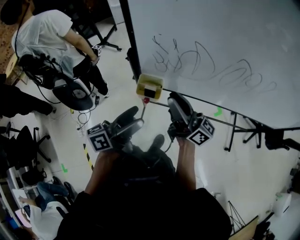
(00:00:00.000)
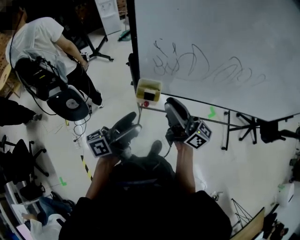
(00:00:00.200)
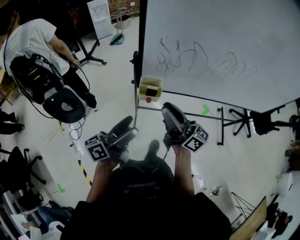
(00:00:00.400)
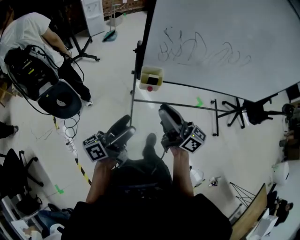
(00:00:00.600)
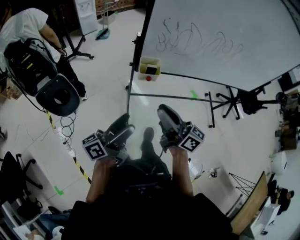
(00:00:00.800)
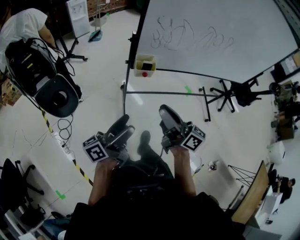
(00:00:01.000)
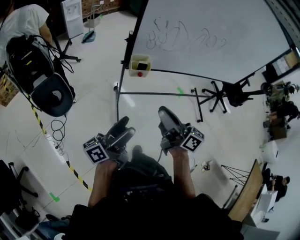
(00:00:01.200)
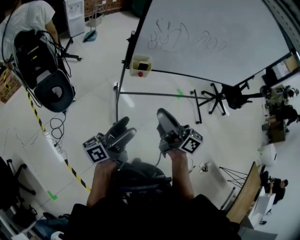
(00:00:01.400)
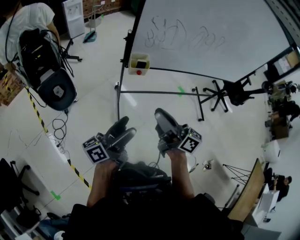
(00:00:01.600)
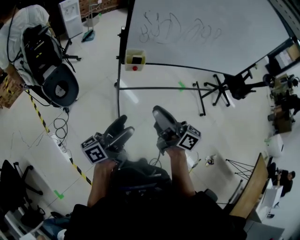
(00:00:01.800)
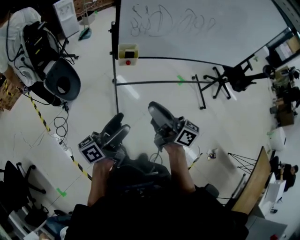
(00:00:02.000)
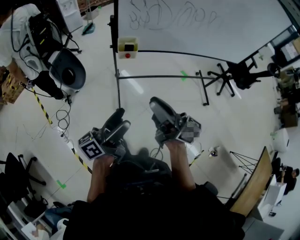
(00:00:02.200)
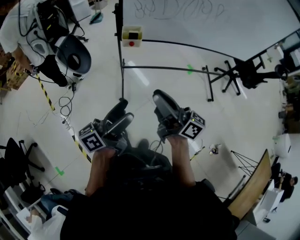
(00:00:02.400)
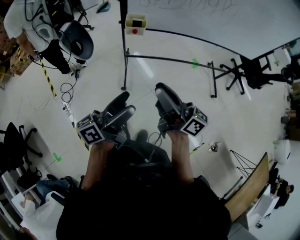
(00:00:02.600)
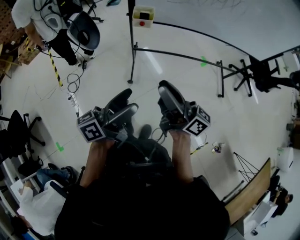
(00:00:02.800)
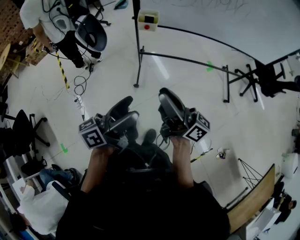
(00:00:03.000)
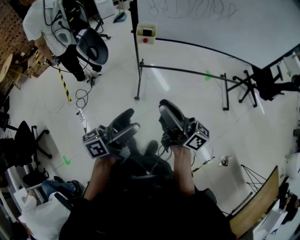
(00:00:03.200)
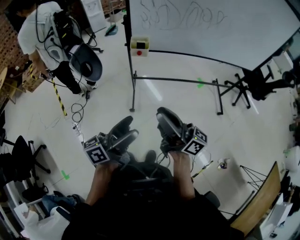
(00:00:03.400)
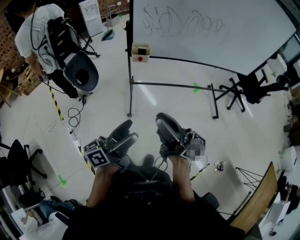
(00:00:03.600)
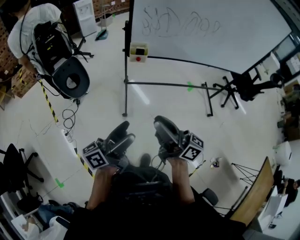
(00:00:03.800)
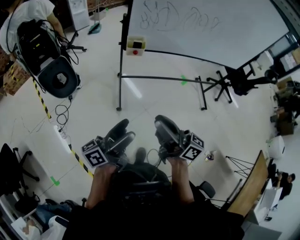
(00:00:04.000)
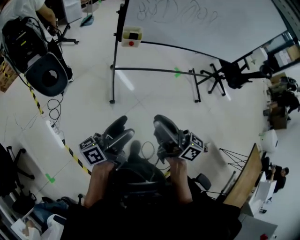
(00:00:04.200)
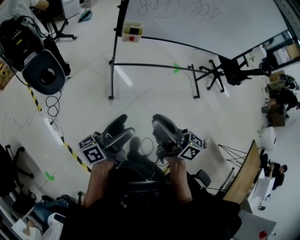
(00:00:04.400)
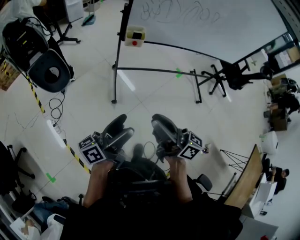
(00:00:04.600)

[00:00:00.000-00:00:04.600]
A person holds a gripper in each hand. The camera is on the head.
00:00:00.000 to 00:00:01.600: The left gripper moves backward and to the left, about 25 cm. The right gripper is displaced backward by some 30 cm.
00:00:01.600 to 00:00:03.000: The grippers both shift backward and to the right by approximately 15 cm.
00:00:03.000 to 00:00:04.600: The left gripper is displaced to the left by roughly 10 cm, while the right gripper moves to the left and backward, about 10 cm.

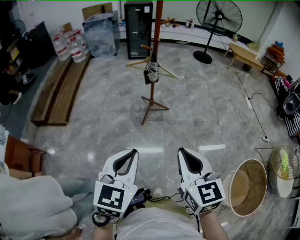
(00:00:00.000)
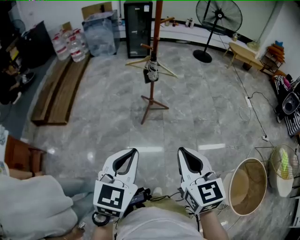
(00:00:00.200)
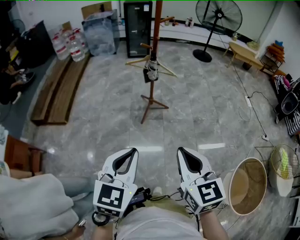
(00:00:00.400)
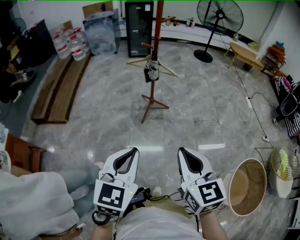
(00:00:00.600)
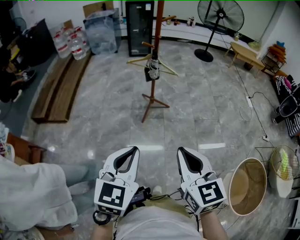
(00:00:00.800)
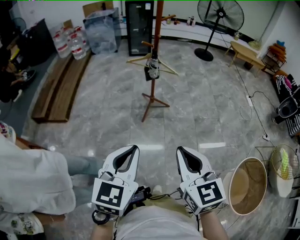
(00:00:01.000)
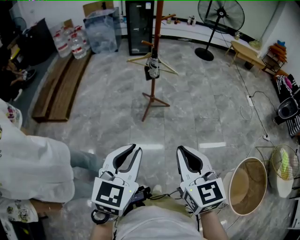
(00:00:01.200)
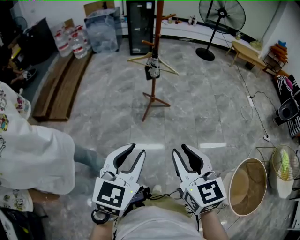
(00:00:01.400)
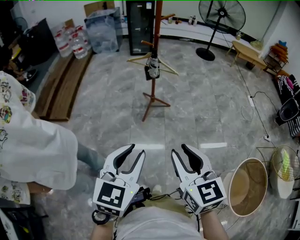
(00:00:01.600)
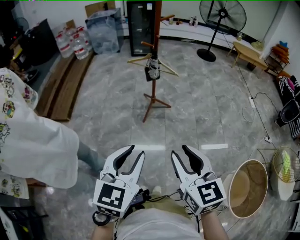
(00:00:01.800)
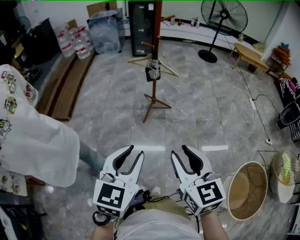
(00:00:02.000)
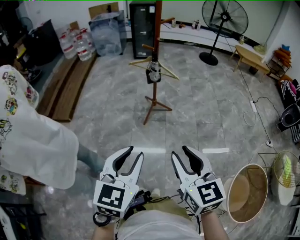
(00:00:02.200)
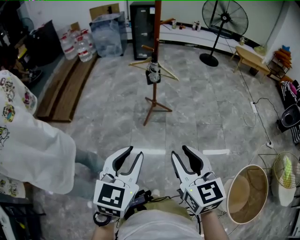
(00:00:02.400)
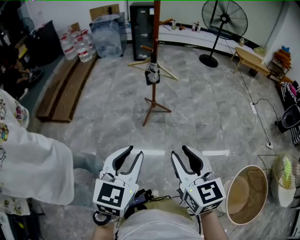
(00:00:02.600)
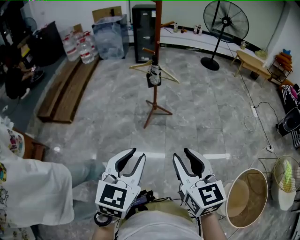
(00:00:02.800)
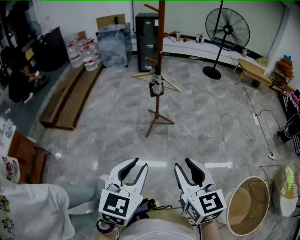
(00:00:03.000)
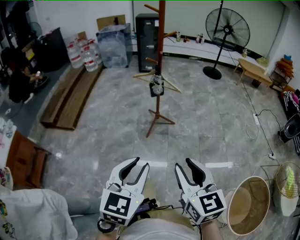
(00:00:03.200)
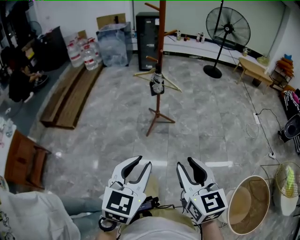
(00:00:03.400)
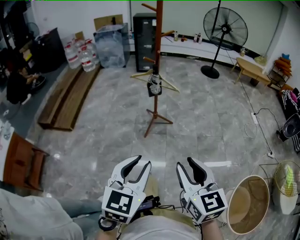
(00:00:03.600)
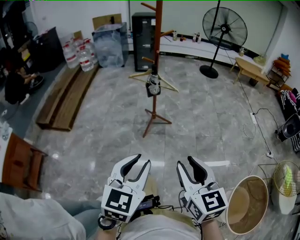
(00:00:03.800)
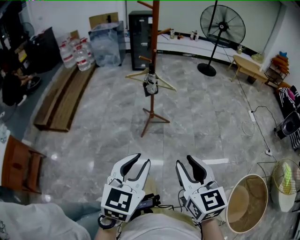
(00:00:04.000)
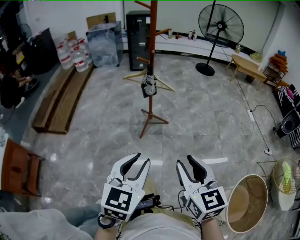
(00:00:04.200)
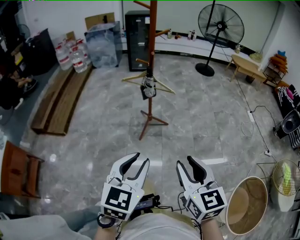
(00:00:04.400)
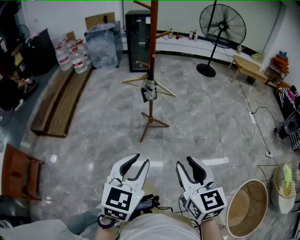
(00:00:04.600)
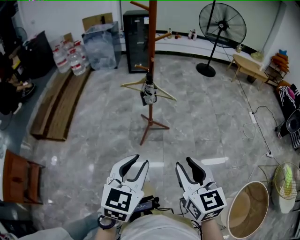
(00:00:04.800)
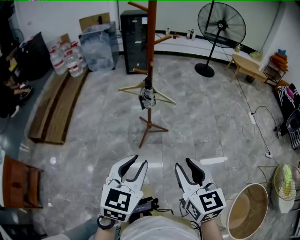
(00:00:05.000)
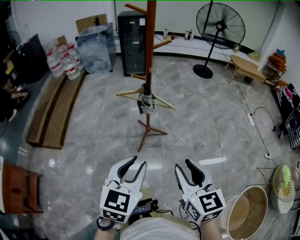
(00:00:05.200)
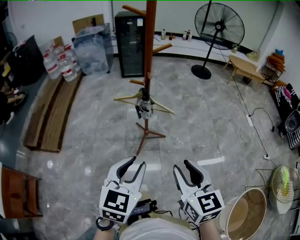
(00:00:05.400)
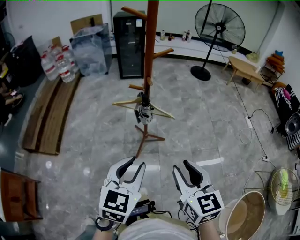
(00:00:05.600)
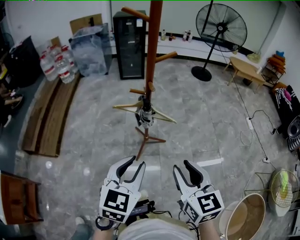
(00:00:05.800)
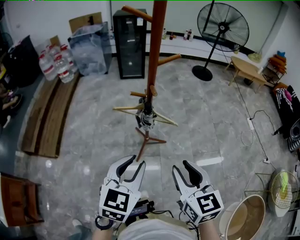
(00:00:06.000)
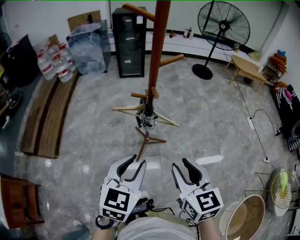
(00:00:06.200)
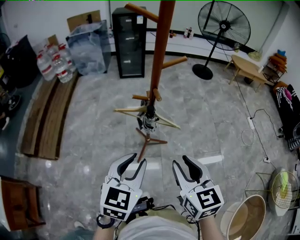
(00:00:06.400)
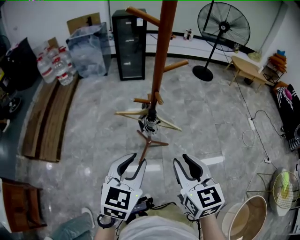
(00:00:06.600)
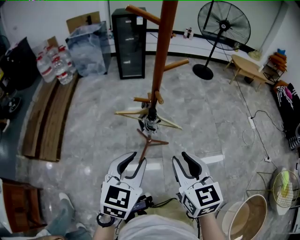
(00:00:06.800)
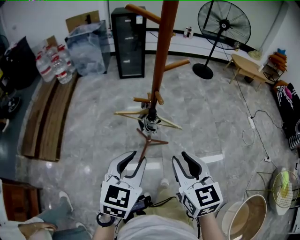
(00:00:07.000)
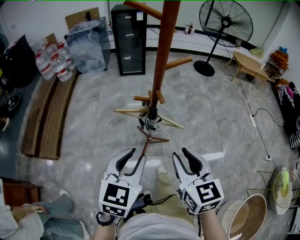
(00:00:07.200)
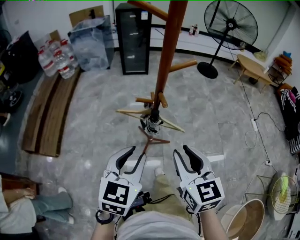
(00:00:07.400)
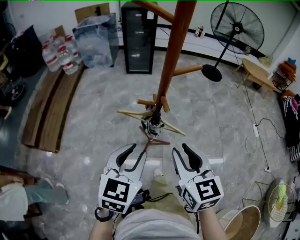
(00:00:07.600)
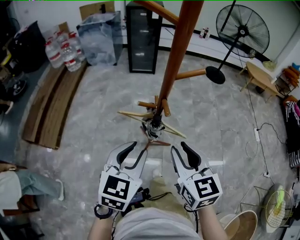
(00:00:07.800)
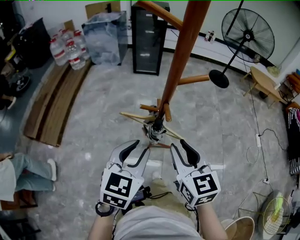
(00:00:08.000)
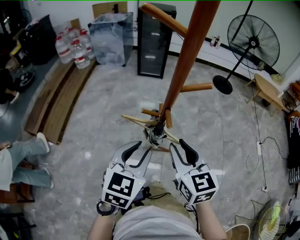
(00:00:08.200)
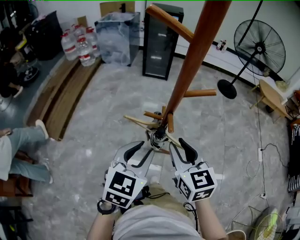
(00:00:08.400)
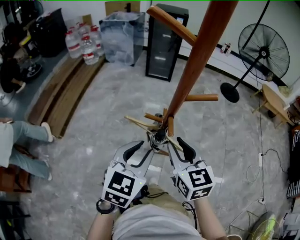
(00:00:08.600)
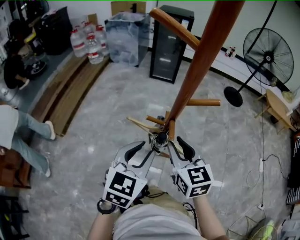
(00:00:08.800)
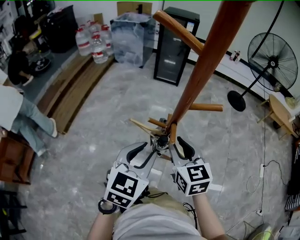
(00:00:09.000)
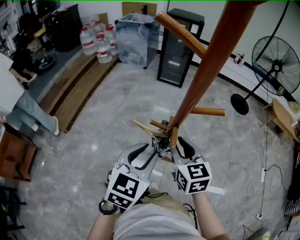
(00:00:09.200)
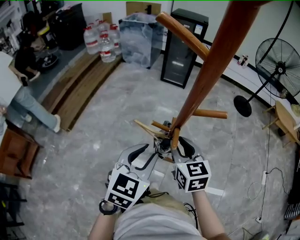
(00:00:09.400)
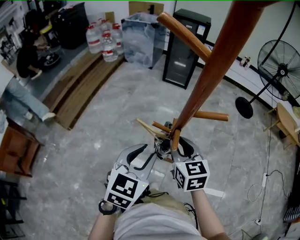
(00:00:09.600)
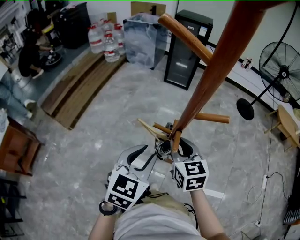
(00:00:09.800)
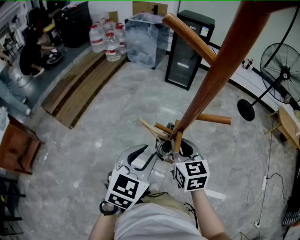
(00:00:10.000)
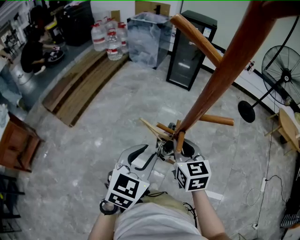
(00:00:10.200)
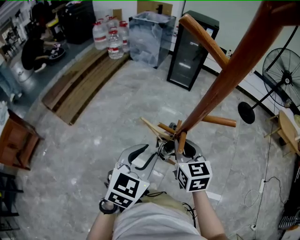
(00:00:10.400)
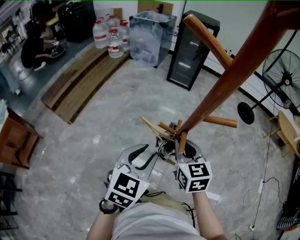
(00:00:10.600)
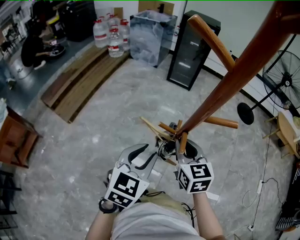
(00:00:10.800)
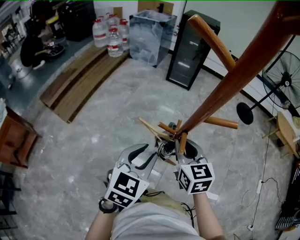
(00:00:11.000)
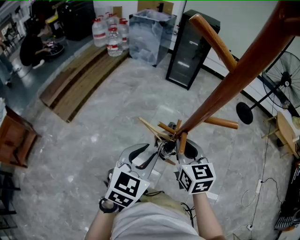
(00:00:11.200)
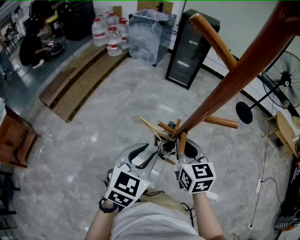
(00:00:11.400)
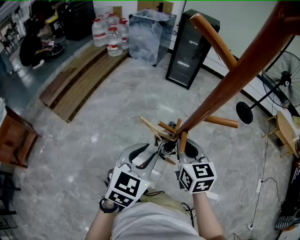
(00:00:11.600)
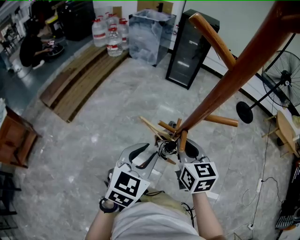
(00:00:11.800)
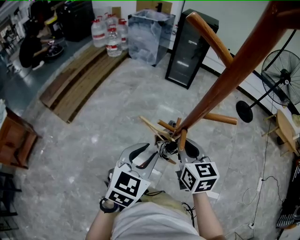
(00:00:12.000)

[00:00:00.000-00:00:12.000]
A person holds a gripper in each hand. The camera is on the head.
00:00:00.000 to 00:00:01.600: The left gripper opens its fingers. Meanwhile the right gripper opens up.
00:00:01.600 to 00:00:03.000: The grippers make only small movements.
00:00:03.000 to 00:00:04.400: The two grippers go roughly 5 cm forward.
00:00:04.400 to 00:00:06.000: The two grippers go some 25 cm forward.
00:00:06.000 to 00:00:07.600: The grippers both shift forward by approximately 10 cm.
00:00:07.600 to 00:00:09.000: The right gripper travels forward by some 15 cm; the left gripper heads forward, covering some 10 cm.
00:00:09.000 to 00:00:12.000: The grippers make only small movements.

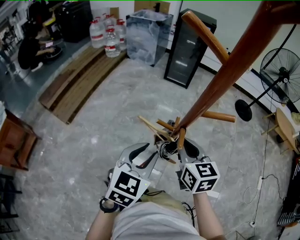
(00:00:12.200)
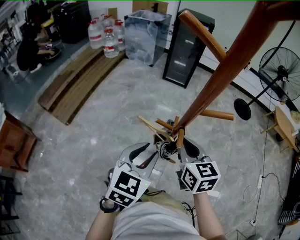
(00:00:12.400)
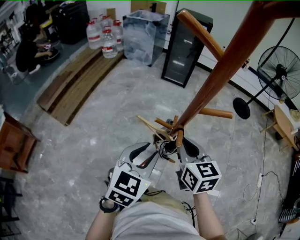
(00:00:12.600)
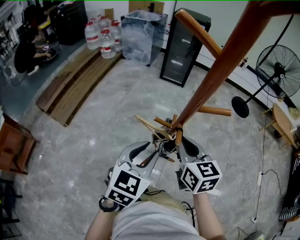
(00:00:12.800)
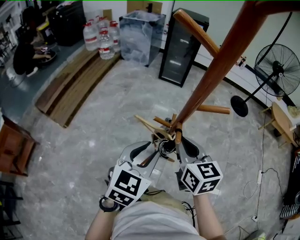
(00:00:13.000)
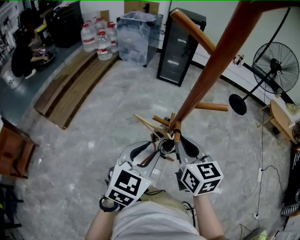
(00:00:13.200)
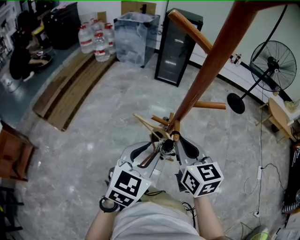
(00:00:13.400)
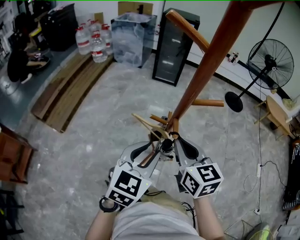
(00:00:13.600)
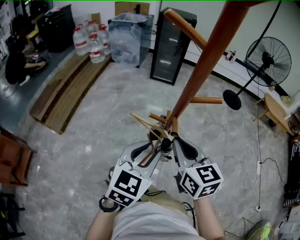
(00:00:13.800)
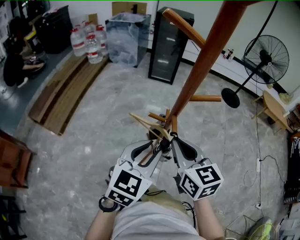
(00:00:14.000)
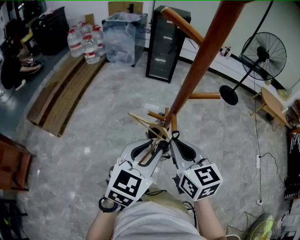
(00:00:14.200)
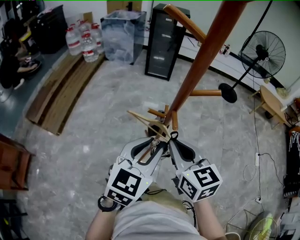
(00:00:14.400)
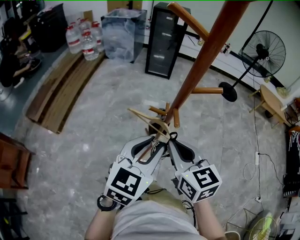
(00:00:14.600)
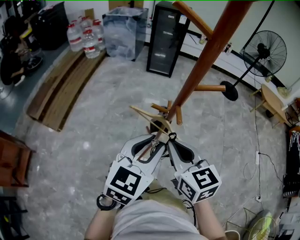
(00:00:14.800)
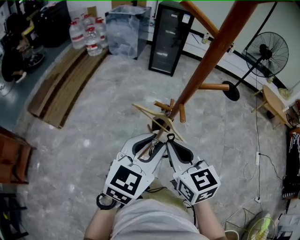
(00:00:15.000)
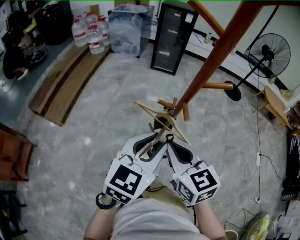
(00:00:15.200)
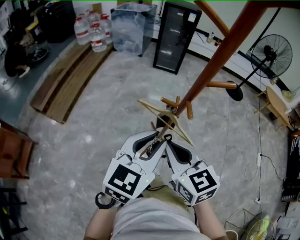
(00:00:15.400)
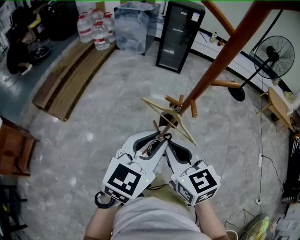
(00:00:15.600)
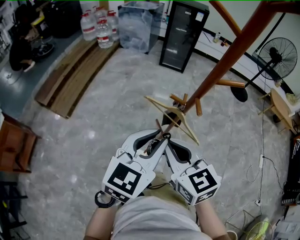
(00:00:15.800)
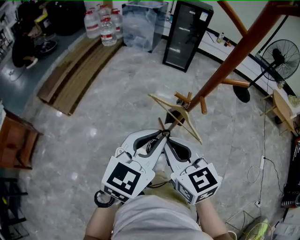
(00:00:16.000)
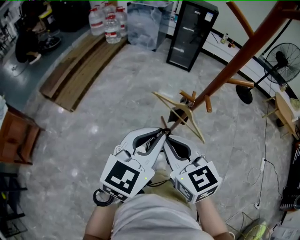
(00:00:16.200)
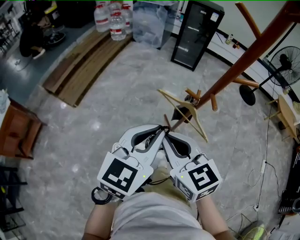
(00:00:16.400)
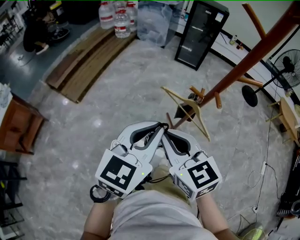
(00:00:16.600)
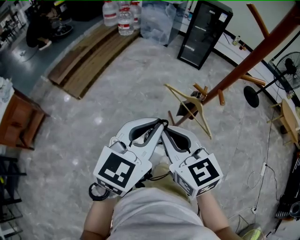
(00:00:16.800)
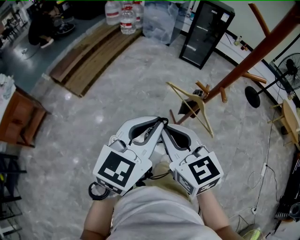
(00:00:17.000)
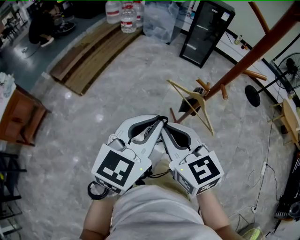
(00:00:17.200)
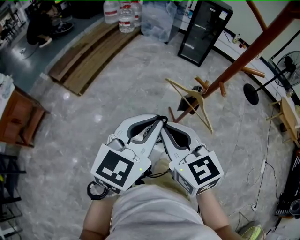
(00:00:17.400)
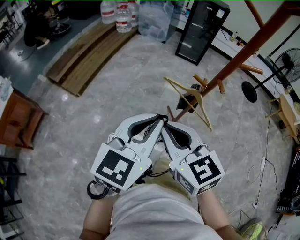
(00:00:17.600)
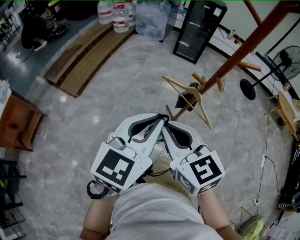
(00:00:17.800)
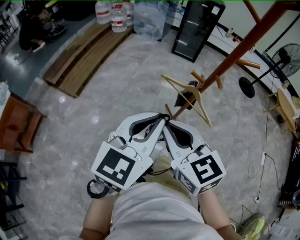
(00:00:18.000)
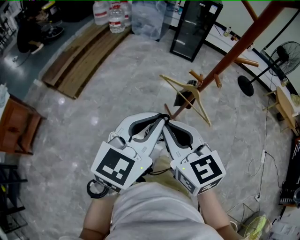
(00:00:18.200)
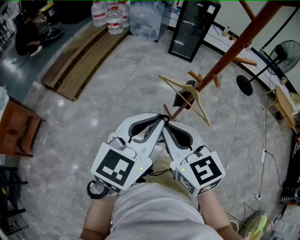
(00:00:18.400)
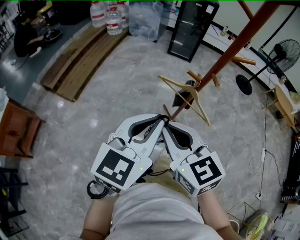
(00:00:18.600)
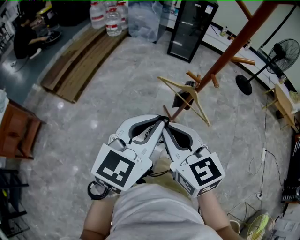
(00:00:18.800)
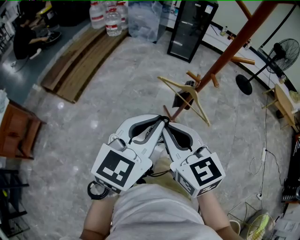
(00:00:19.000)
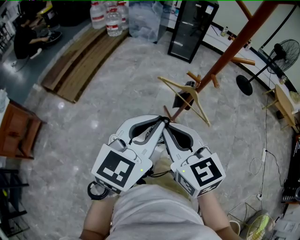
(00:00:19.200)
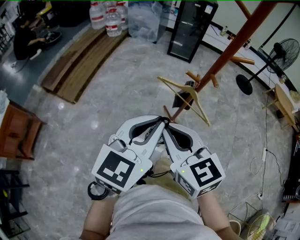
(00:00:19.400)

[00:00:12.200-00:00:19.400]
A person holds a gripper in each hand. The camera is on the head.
00:00:12.200 to 00:00:13.600: The right gripper moves about 5 cm.
00:00:13.600 to 00:00:15.000: The right gripper goes some 5 cm backward.
00:00:15.000 to 00:00:16.600: The right gripper moves to the left and backward, some 15 cm, while the left gripper shifts some 10 cm to the left, and closes.
00:00:16.600 to 00:00:18.000: The grippers make only small movements.
00:00:18.000 to 00:00:19.400: Both grippers stay put.
